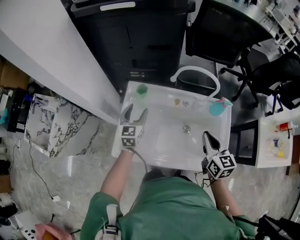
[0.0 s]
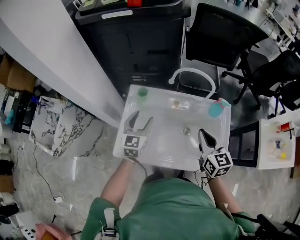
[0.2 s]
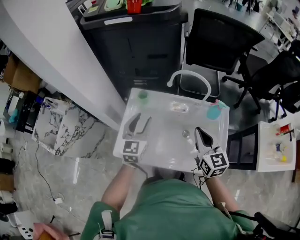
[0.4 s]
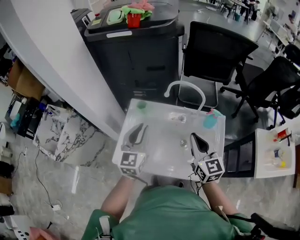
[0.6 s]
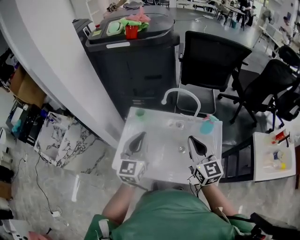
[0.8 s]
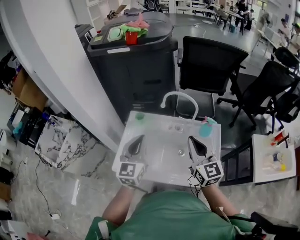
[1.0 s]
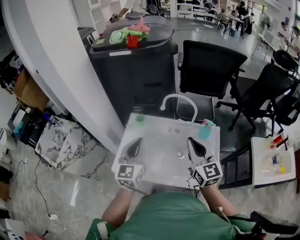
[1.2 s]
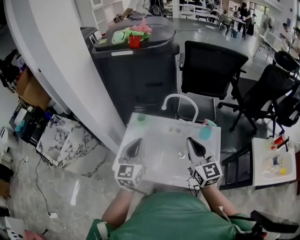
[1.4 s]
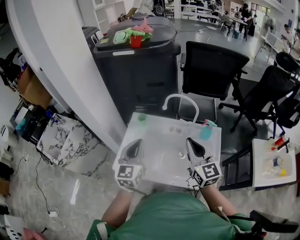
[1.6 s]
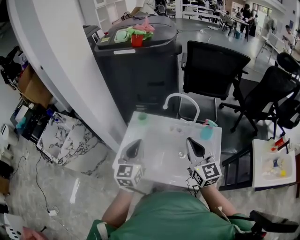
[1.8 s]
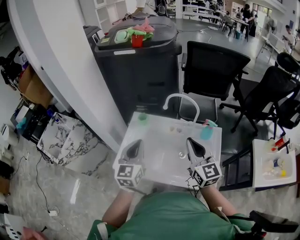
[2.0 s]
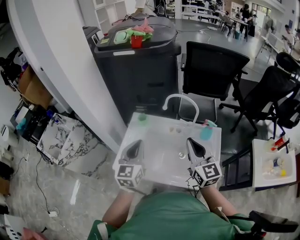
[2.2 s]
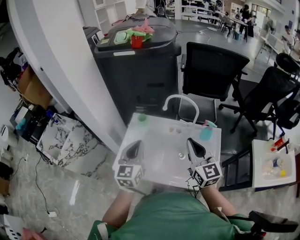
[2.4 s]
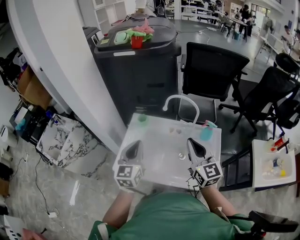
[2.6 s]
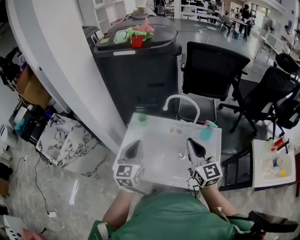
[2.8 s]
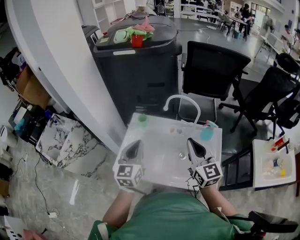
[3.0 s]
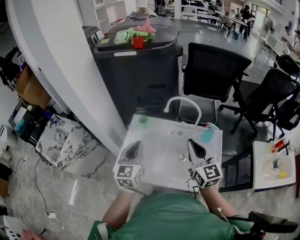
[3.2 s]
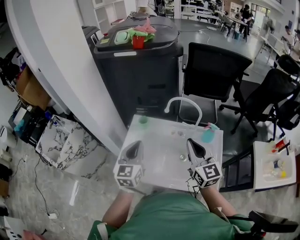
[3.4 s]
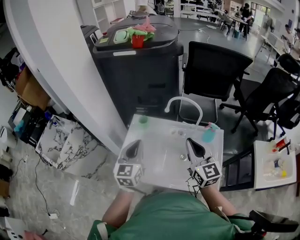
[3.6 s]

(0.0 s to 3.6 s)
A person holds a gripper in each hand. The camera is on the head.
0.0 s - 1.8 s: The right gripper is displaced upward by roughly 15 cm, and rotates roughly 30 degrees. The left gripper is displaced backward and upward by some 25 cm, and closes up.
1.8 s - 3.6 s: There are only small adjustments of the grippers.

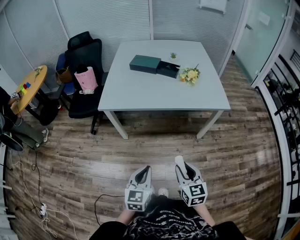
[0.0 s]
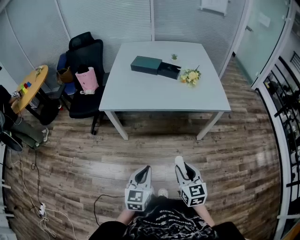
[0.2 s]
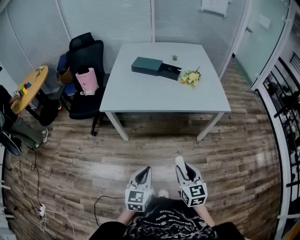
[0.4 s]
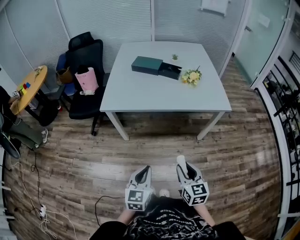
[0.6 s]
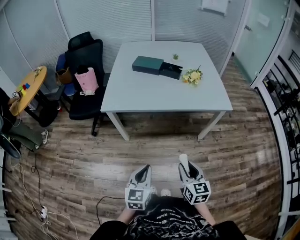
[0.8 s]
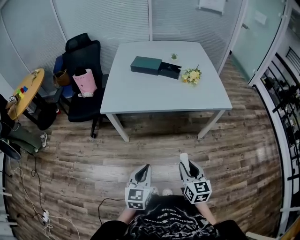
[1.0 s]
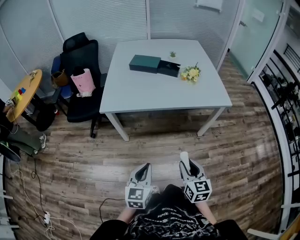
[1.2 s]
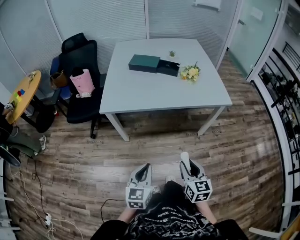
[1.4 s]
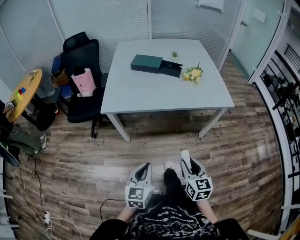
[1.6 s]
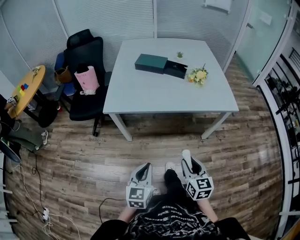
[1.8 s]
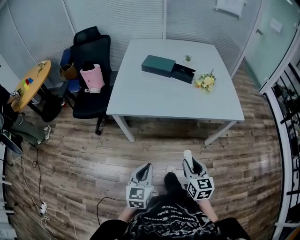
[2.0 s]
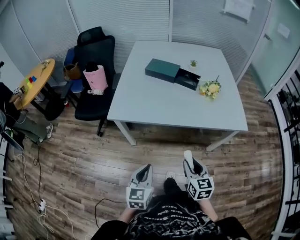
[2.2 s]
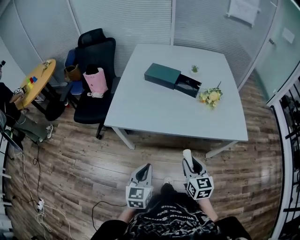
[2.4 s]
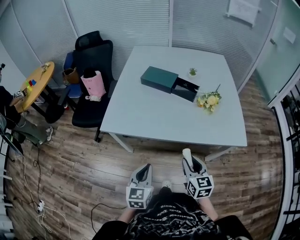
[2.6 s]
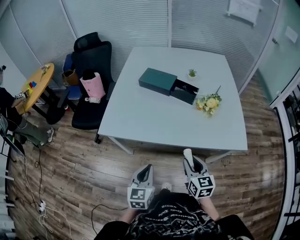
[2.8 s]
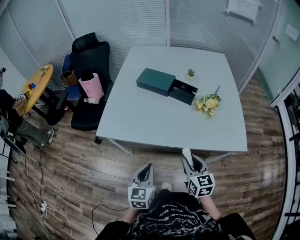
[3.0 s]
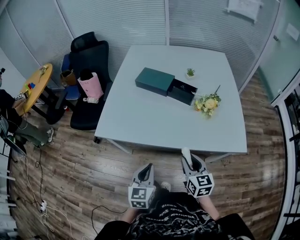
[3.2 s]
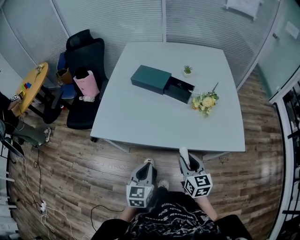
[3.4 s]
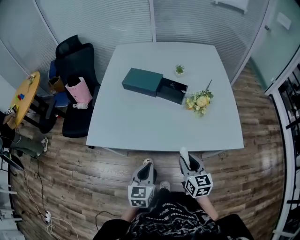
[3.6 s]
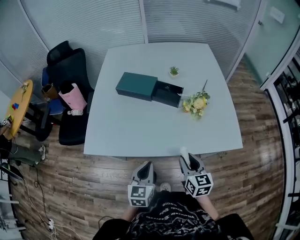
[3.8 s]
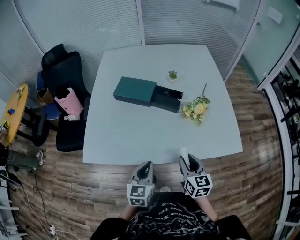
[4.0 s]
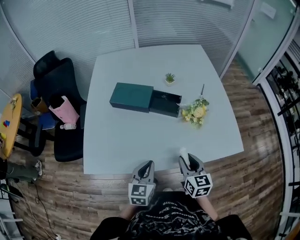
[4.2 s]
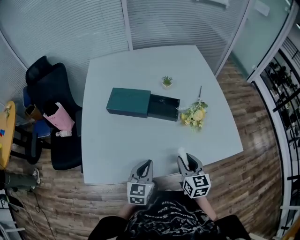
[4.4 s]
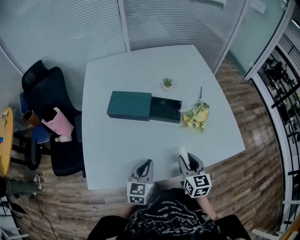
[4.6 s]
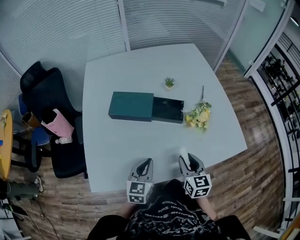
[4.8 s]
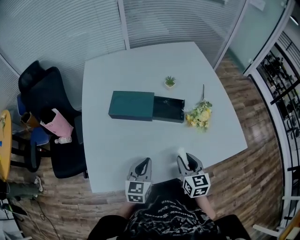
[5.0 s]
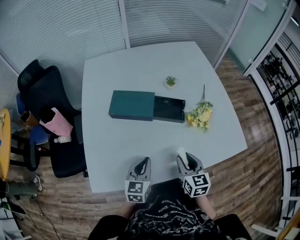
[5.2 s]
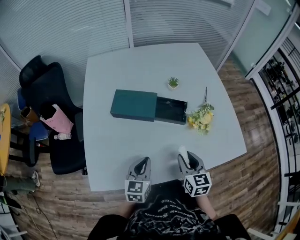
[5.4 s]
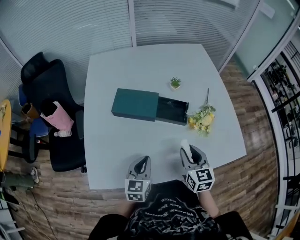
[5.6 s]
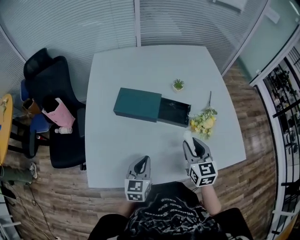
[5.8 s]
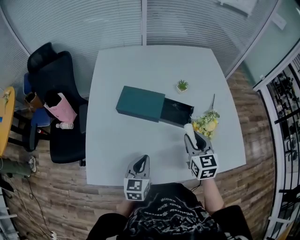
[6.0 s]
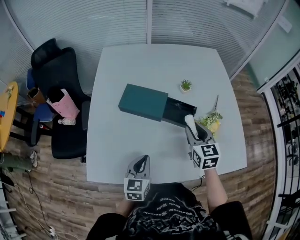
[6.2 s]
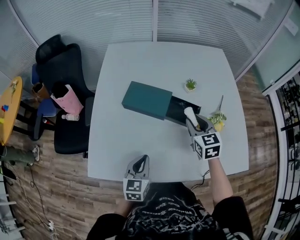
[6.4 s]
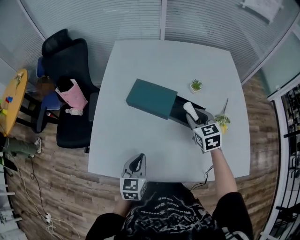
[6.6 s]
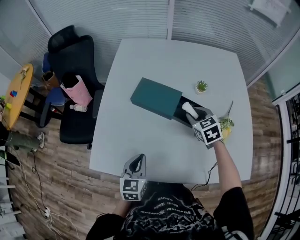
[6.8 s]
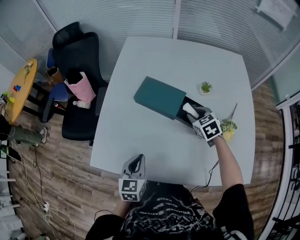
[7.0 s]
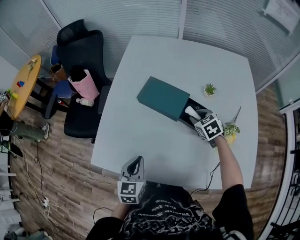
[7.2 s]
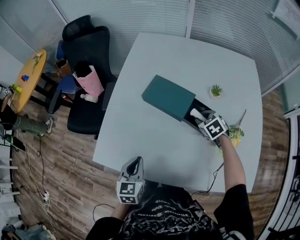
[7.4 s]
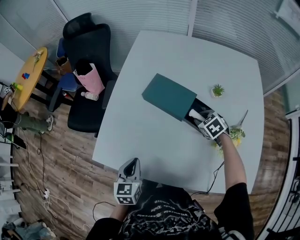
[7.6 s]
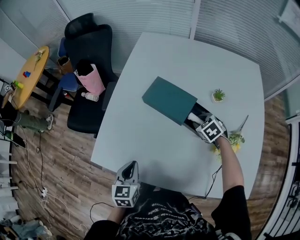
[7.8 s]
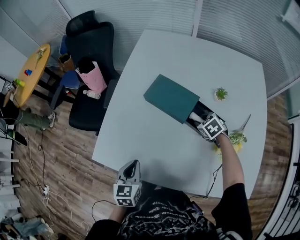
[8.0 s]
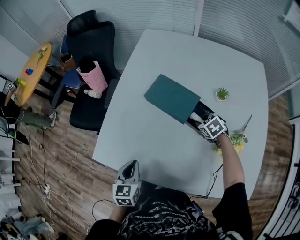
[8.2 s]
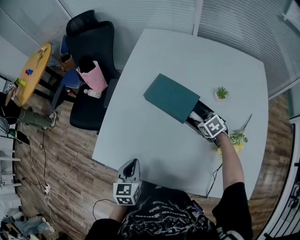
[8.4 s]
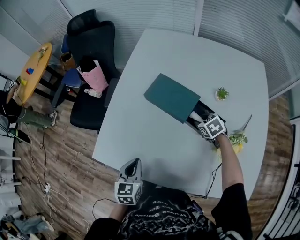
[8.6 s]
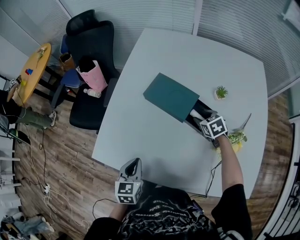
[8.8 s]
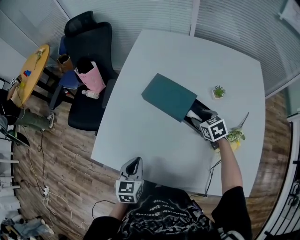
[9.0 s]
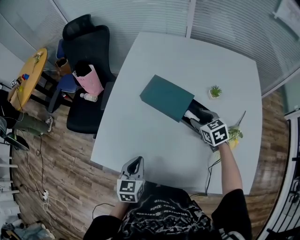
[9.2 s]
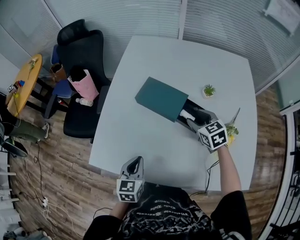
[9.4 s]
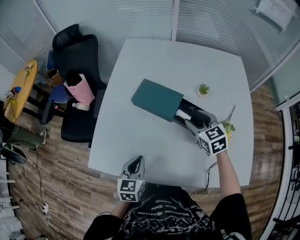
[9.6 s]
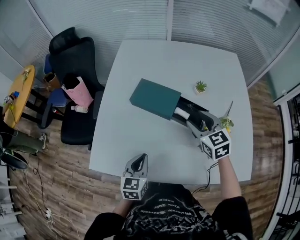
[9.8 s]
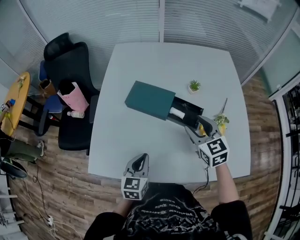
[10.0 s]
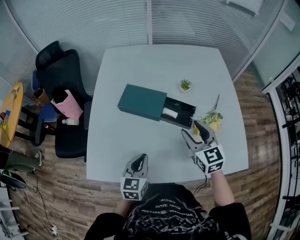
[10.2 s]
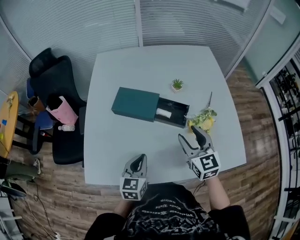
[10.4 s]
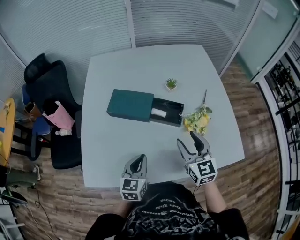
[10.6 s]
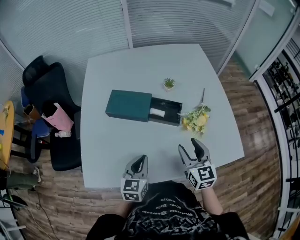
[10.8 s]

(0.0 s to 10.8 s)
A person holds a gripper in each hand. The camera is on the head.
0.0 s - 1.6 s: The left gripper heads to the left, covering approximately 5 cm, while the right gripper moves roughly 5 cm.
1.6 s - 3.0 s: The grippers both shift forward by roughly 30 cm.
3.0 s - 4.6 s: Both grippers move forward, about 25 cm. The left gripper turns by some 30 degrees. Meanwhile the right gripper changes its angle by about 20 degrees.
4.6 s - 6.2 s: The left gripper changes place by some 5 cm, while the right gripper travels forward by roughly 15 cm.
6.2 s - 7.8 s: The left gripper moves about 10 cm, and rotates approximately 30 degrees. The right gripper goes some 15 cm downward, and tilts its fingers some 30 degrees downward.
7.8 s - 9.2 s: The right gripper moves upward, about 5 cm, turns by approximately 20 degrees, and opens up.
9.2 s - 10.8 s: The right gripper shifts by some 25 cm, and swivels roughly 40 degrees; the left gripper ends up some 10 cm from where it was, and swivels some 30 degrees.

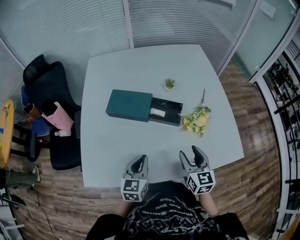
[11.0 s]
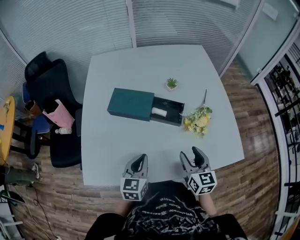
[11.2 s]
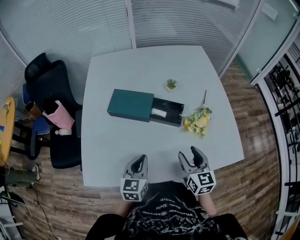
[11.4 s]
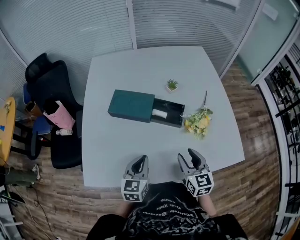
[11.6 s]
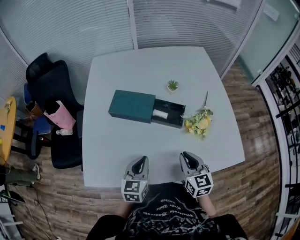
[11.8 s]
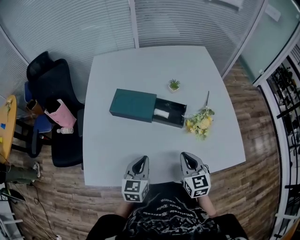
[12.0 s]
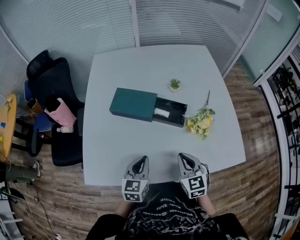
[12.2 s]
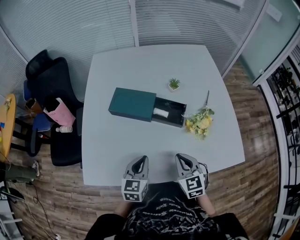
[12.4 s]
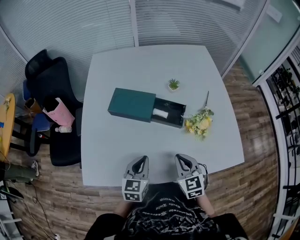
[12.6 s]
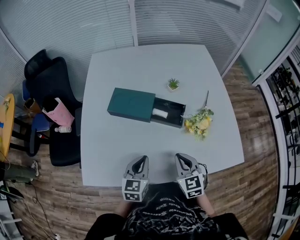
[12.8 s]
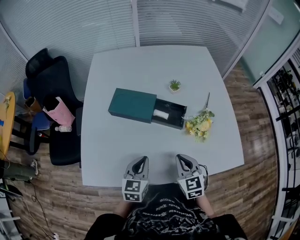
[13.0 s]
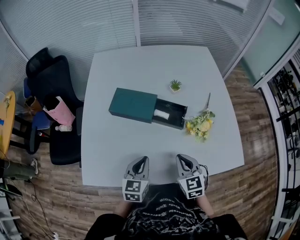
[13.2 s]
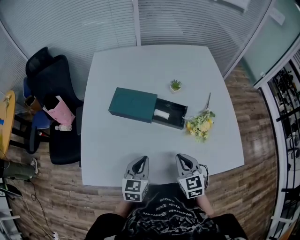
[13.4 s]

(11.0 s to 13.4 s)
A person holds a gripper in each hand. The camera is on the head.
11.0 s - 12.2 s: The right gripper closes.
12.2 s - 13.4 s: The grippers stay close to where they were, moving slightly.

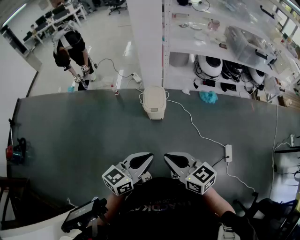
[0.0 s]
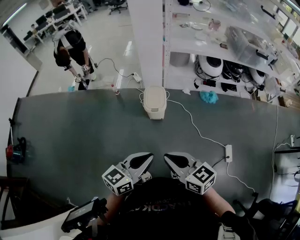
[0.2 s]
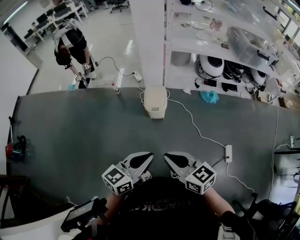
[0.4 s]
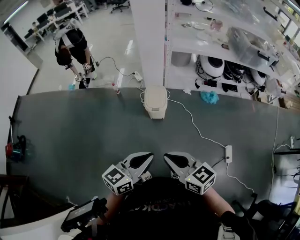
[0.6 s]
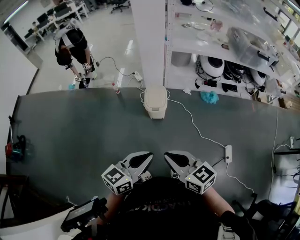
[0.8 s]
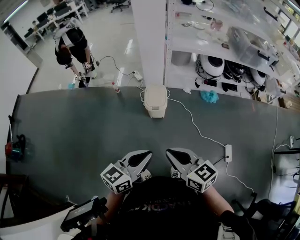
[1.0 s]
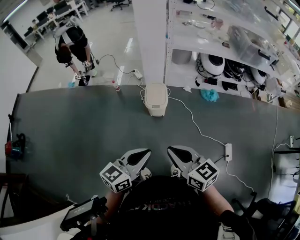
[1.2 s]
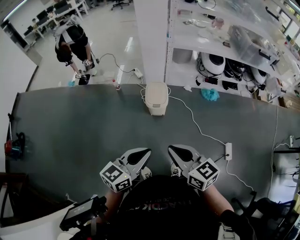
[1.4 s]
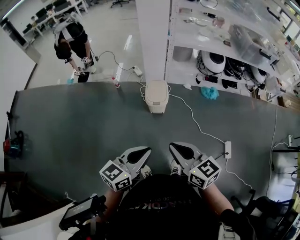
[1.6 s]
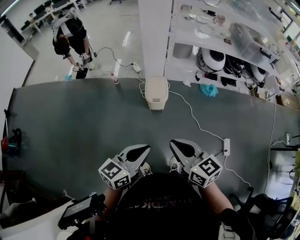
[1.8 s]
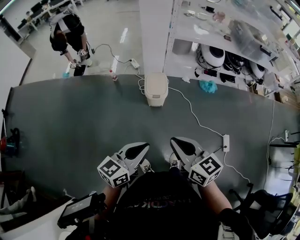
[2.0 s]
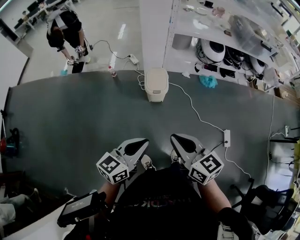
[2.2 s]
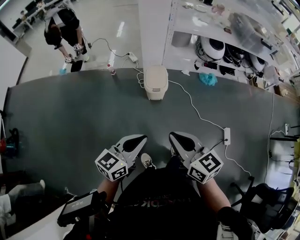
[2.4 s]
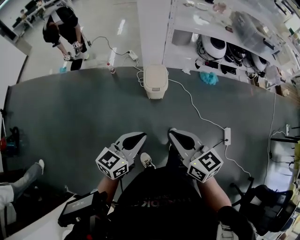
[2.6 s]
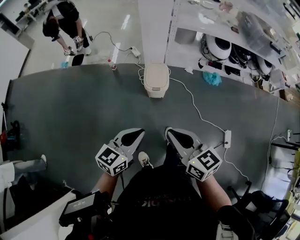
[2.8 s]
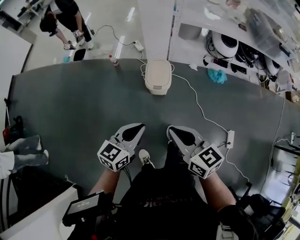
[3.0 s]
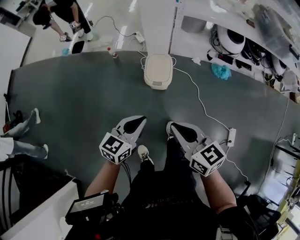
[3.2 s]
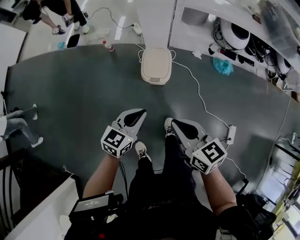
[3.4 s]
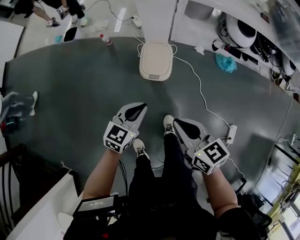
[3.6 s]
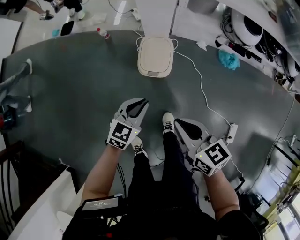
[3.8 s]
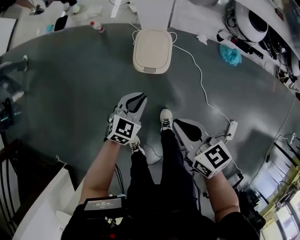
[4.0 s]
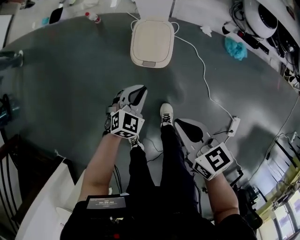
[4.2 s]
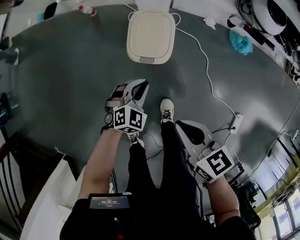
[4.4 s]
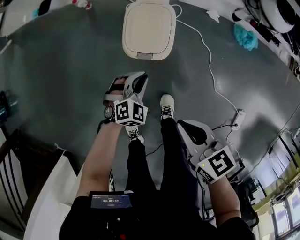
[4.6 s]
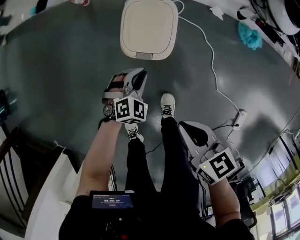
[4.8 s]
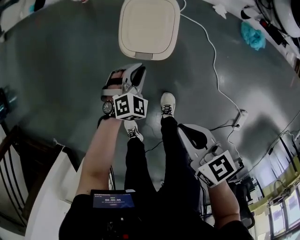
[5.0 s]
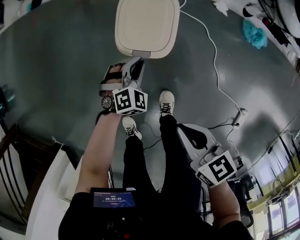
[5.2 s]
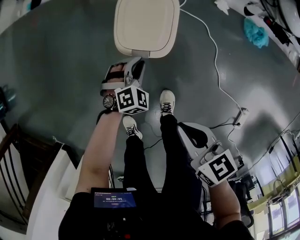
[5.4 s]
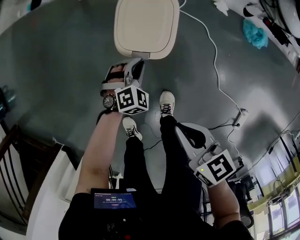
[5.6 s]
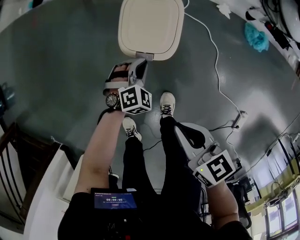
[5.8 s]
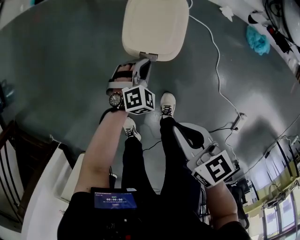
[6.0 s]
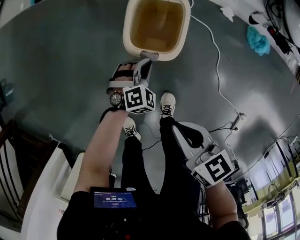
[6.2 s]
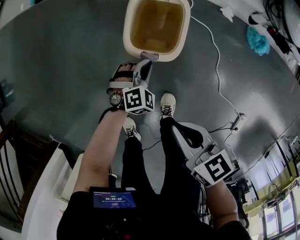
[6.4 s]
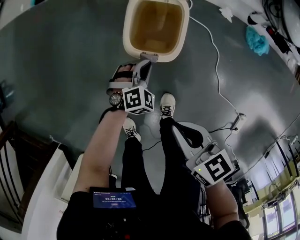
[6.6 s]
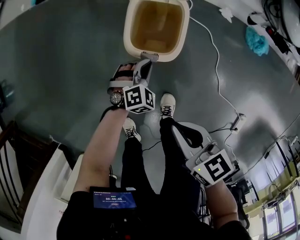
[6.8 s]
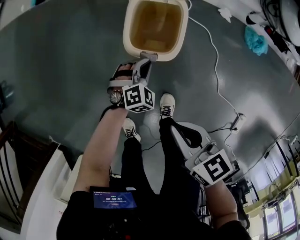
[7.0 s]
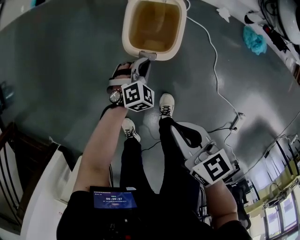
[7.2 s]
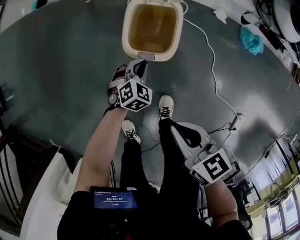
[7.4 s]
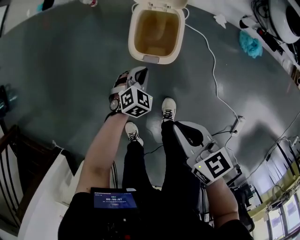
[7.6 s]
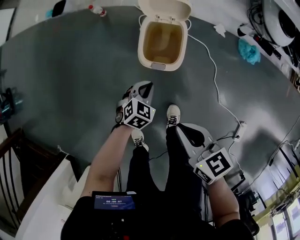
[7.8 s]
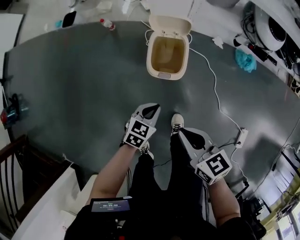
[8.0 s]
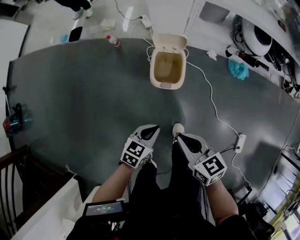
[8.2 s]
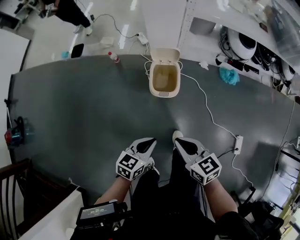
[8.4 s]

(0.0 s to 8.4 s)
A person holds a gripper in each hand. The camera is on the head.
0.0 s - 1.4 s: There are only small adjustments of the grippers.
1.4 s - 2.8 s: The right gripper travels forward by some 5 cm. The left gripper is displaced forward and downward by about 10 cm.
2.8 s - 4.2 s: The grippers both shift downward and forward by roughly 40 cm. The left gripper rotates approximately 40 degrees. The right gripper swivels about 20 degrees.
4.2 s - 5.6 s: Both grippers move downward, roughly 20 cm. The left gripper swivels some 30 degrees.
5.6 s - 7.0 s: The grippers make only small movements.
7.0 s - 8.4 s: The left gripper heads upward and backward, covering approximately 50 cm, and rolls counterclockwise, seen from behind, by about 50 degrees. The right gripper shifts some 25 cm upward.
